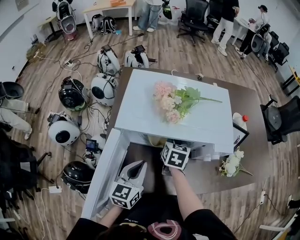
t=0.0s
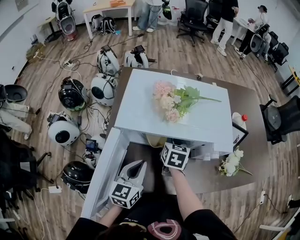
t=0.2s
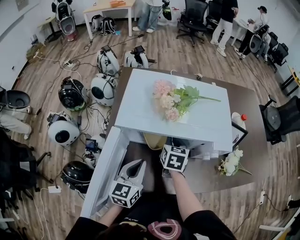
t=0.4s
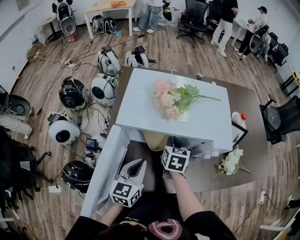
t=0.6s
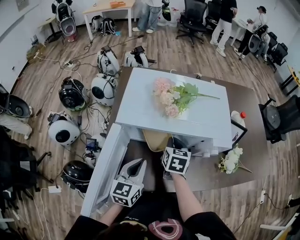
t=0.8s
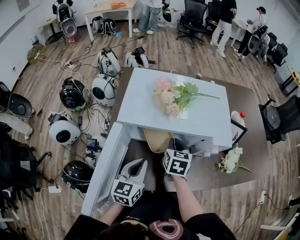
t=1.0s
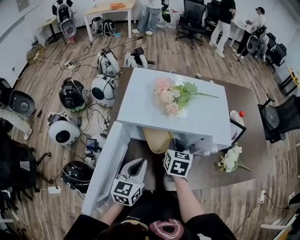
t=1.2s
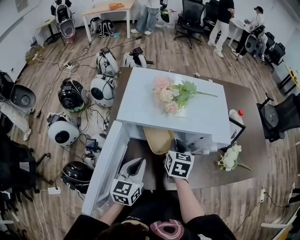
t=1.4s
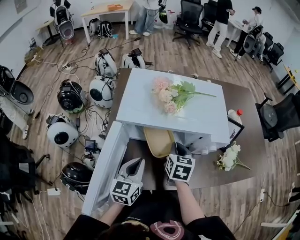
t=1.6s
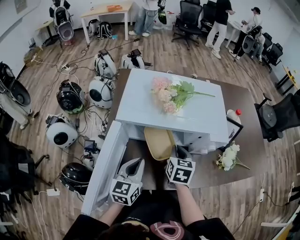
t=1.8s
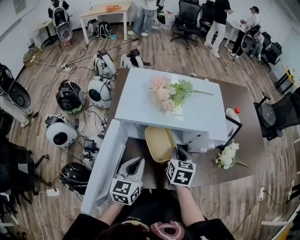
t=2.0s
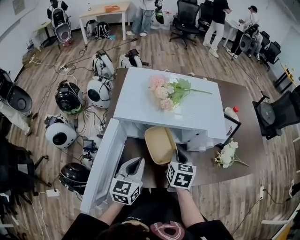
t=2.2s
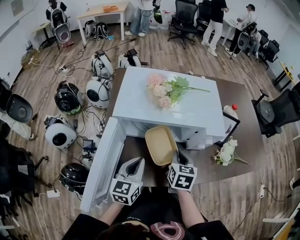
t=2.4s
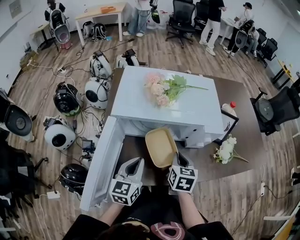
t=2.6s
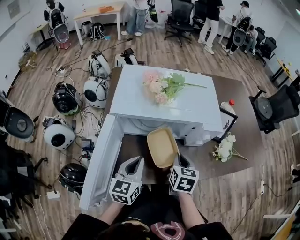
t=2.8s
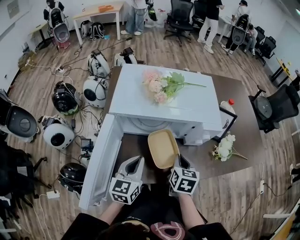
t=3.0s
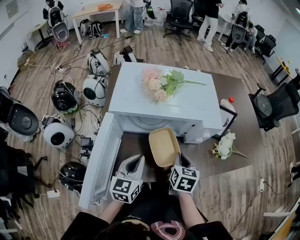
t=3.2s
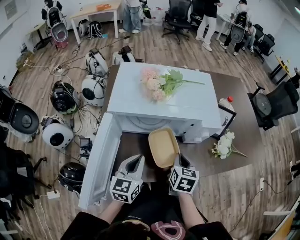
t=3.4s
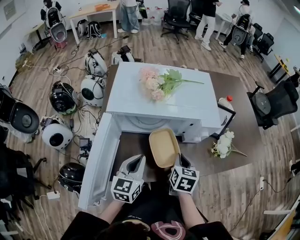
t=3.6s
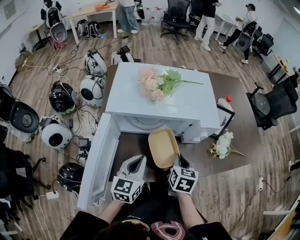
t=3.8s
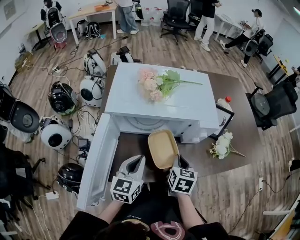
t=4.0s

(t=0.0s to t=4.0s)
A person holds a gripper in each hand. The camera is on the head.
t=0.0s - t=1.4s: The right gripper heads backward, covering about 5 cm.
t=1.4s - t=2.6s: The right gripper travels backward and to the right by approximately 10 cm.
t=2.6s - t=4.0s: The grippers make only small movements.

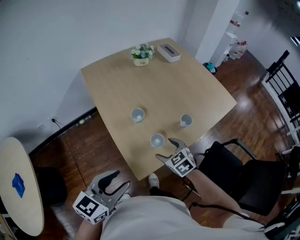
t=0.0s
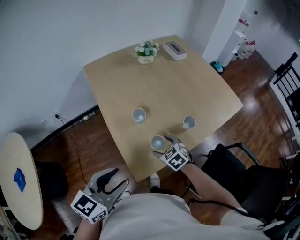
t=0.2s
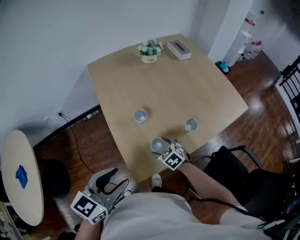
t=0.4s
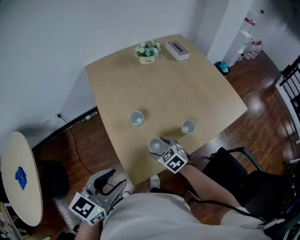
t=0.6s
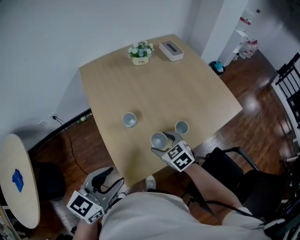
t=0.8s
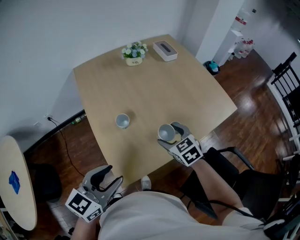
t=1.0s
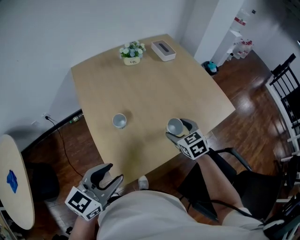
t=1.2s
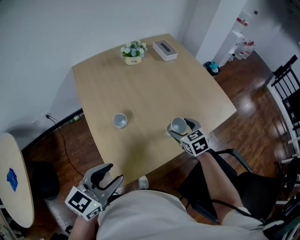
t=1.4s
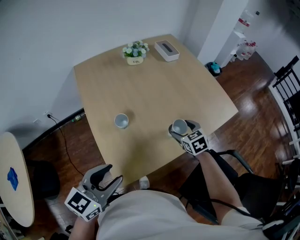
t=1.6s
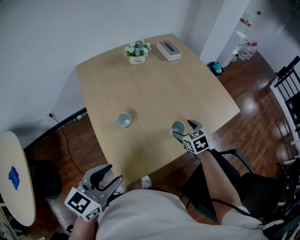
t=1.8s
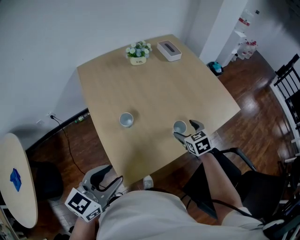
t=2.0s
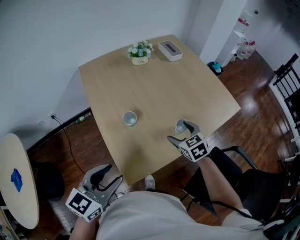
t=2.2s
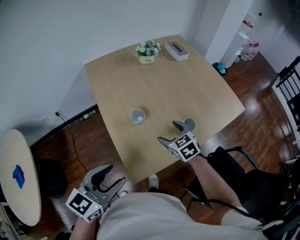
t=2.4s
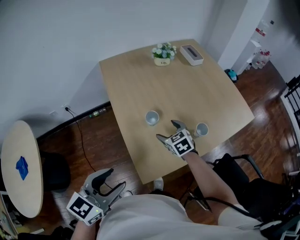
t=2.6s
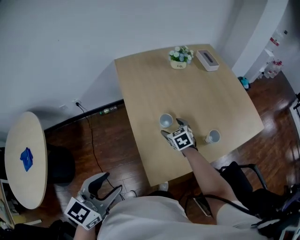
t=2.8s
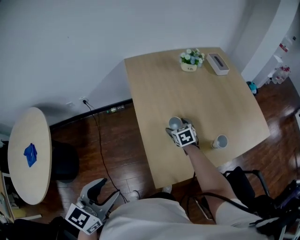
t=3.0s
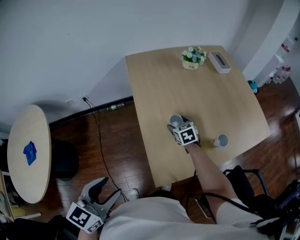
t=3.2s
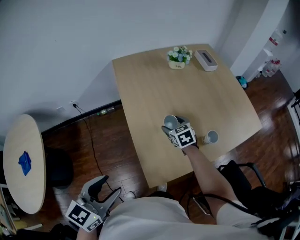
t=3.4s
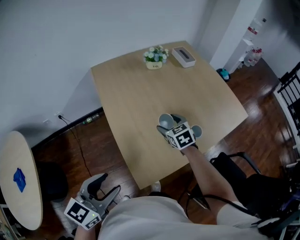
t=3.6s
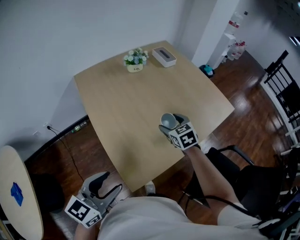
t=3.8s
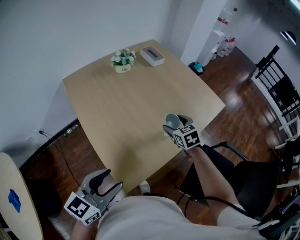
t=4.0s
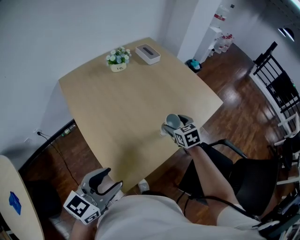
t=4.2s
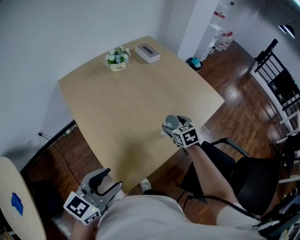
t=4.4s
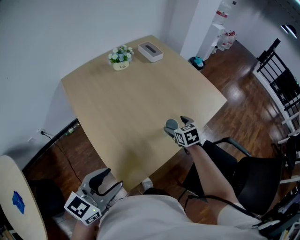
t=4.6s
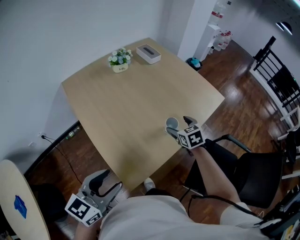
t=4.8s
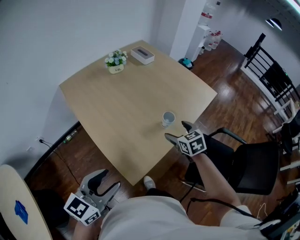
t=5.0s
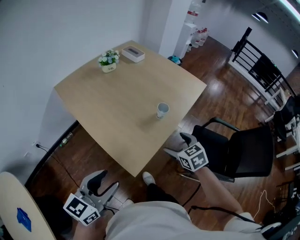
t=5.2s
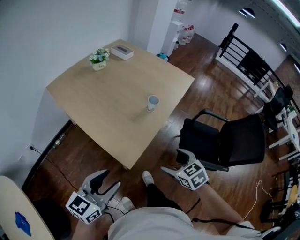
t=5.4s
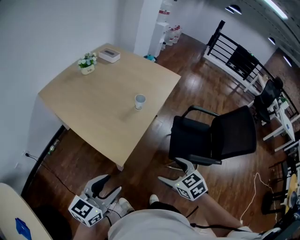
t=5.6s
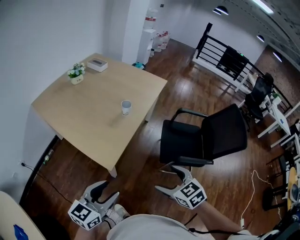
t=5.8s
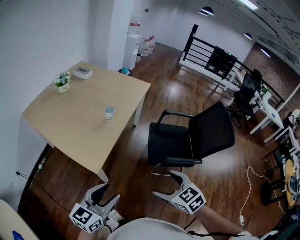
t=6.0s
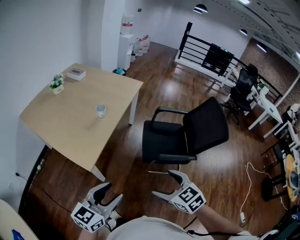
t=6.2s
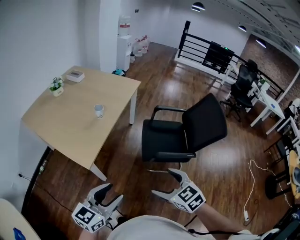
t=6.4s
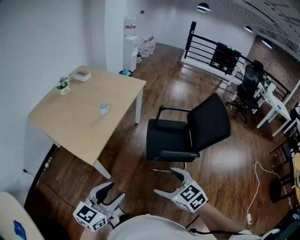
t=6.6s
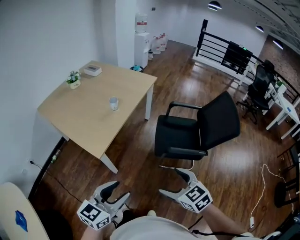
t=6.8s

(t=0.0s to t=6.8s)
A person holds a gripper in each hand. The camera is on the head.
t=0.0s - t=1.4s: The right gripper shifts roughly 25 cm to the right and forward, while the left gripper is displaced to the right and forward by approximately 15 cm.
t=1.4s - t=2.8s: The right gripper moves to the left, roughly 25 cm, while the left gripper travels to the left and backward by approximately 20 cm.
t=2.8s - t=4.0s: The left gripper moves about 15 cm, and rotates about 20 degrees; the right gripper shifts by some 25 cm, and rotates some 20 degrees.
t=4.0s - t=5.4s: The right gripper travels backward by approximately 40 cm. The left gripper goes roughly 15 cm backward.
t=5.4s - t=6.8s: Both grippers travel together to the right and backward, some 30 cm.

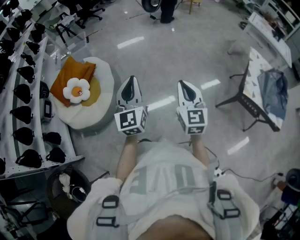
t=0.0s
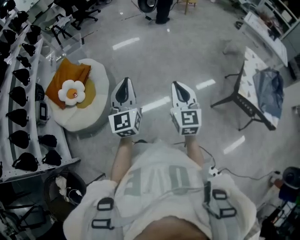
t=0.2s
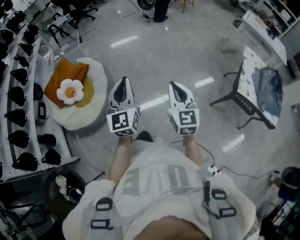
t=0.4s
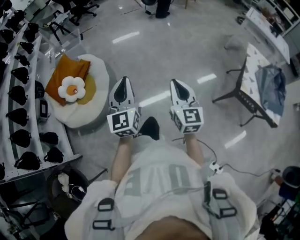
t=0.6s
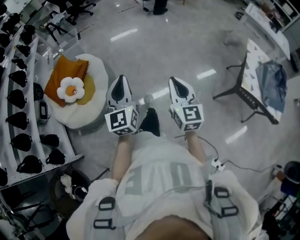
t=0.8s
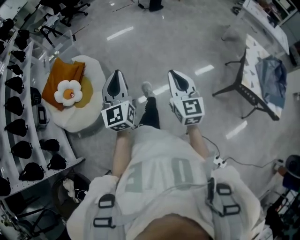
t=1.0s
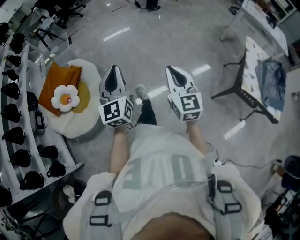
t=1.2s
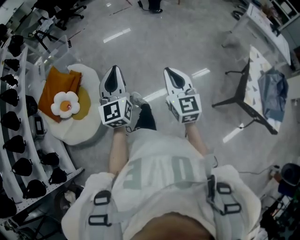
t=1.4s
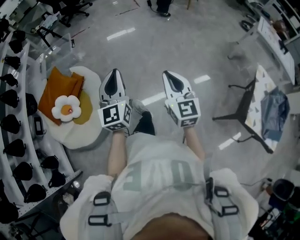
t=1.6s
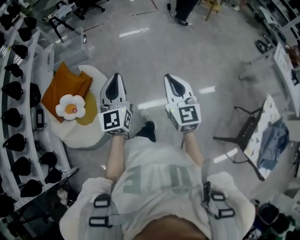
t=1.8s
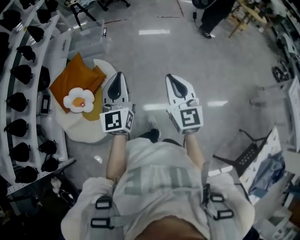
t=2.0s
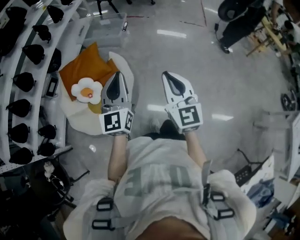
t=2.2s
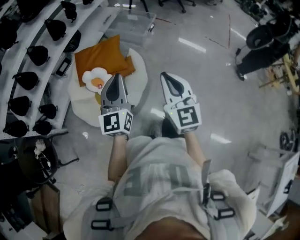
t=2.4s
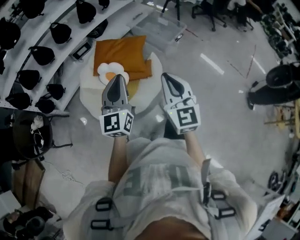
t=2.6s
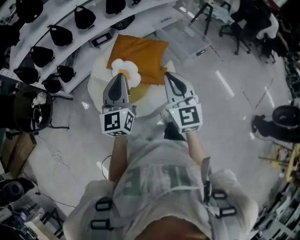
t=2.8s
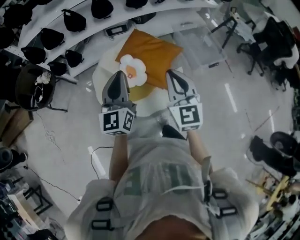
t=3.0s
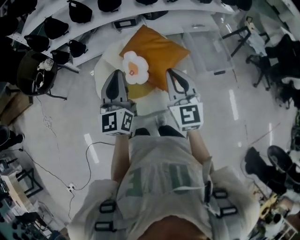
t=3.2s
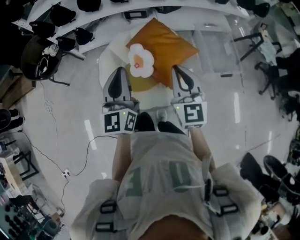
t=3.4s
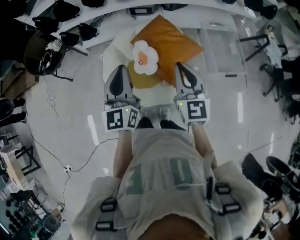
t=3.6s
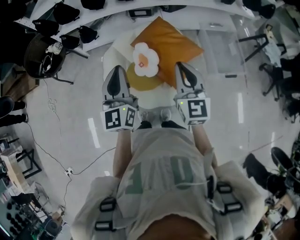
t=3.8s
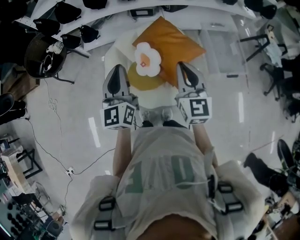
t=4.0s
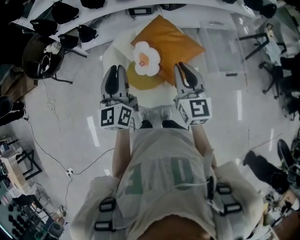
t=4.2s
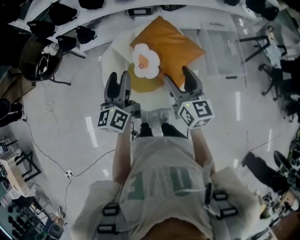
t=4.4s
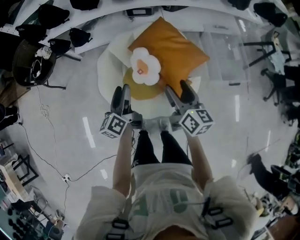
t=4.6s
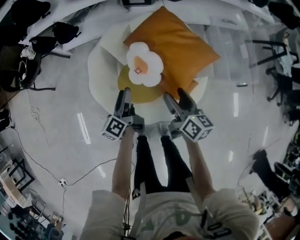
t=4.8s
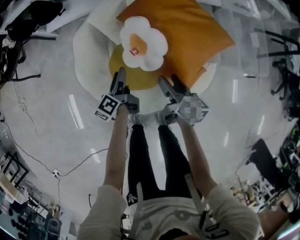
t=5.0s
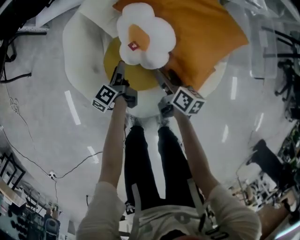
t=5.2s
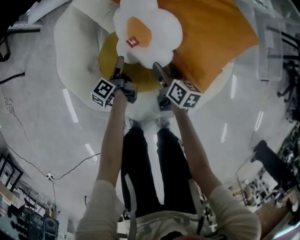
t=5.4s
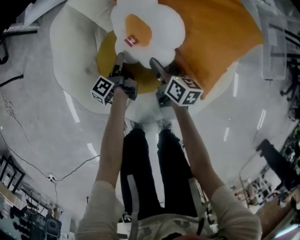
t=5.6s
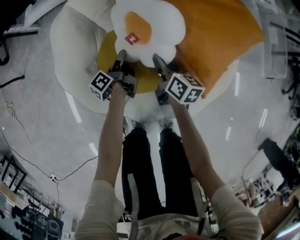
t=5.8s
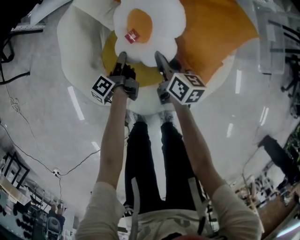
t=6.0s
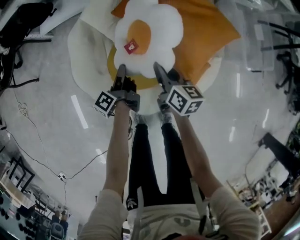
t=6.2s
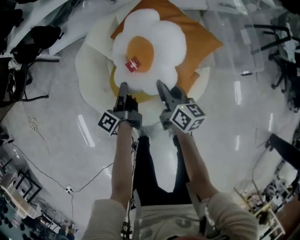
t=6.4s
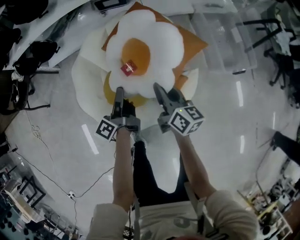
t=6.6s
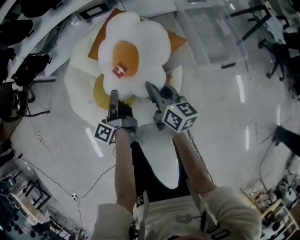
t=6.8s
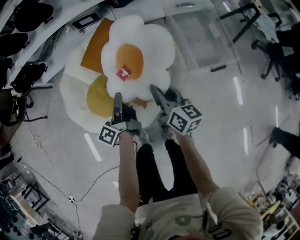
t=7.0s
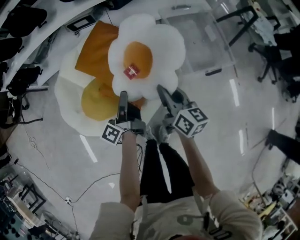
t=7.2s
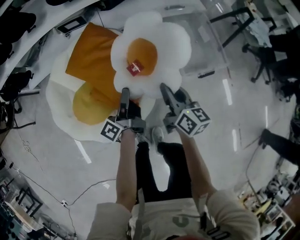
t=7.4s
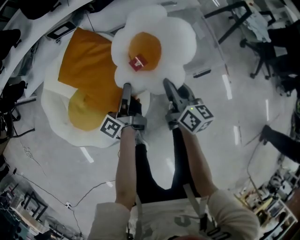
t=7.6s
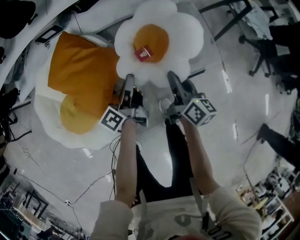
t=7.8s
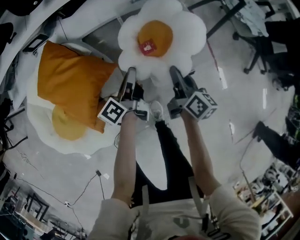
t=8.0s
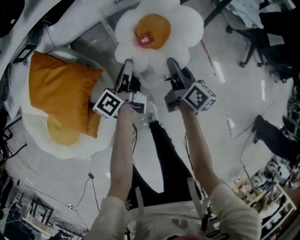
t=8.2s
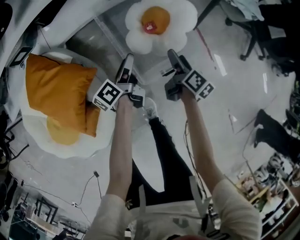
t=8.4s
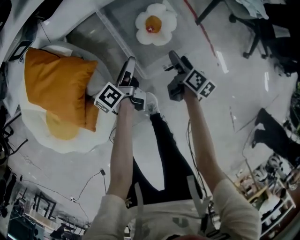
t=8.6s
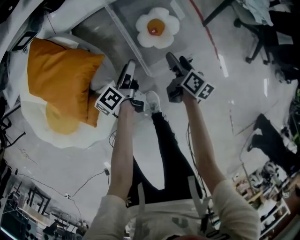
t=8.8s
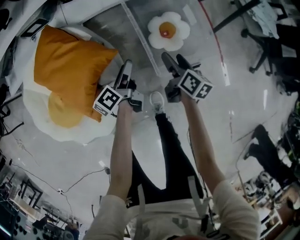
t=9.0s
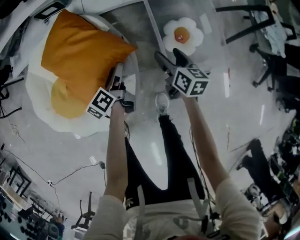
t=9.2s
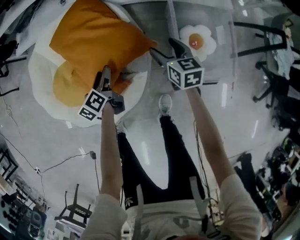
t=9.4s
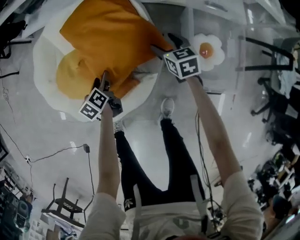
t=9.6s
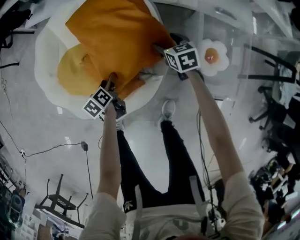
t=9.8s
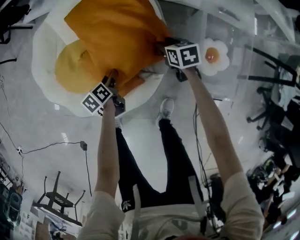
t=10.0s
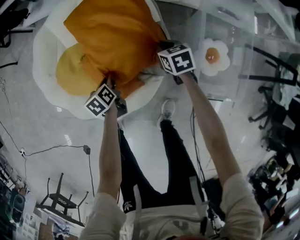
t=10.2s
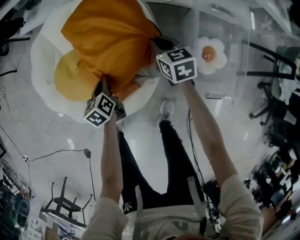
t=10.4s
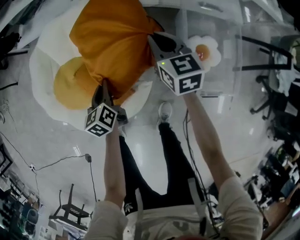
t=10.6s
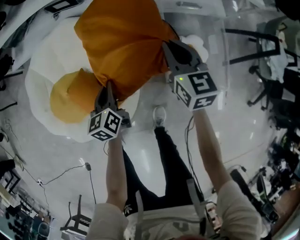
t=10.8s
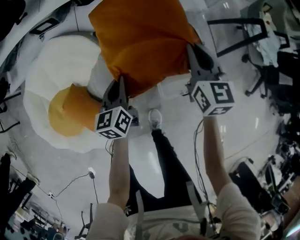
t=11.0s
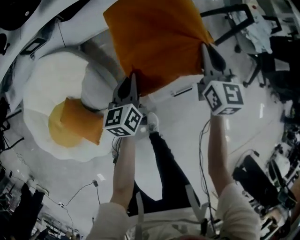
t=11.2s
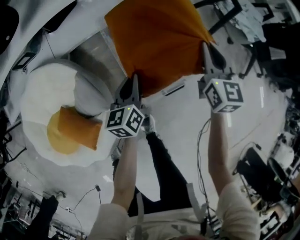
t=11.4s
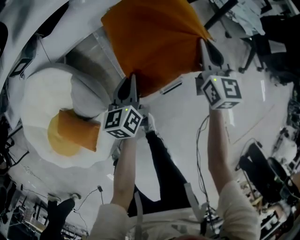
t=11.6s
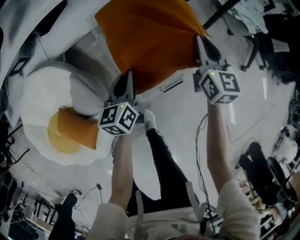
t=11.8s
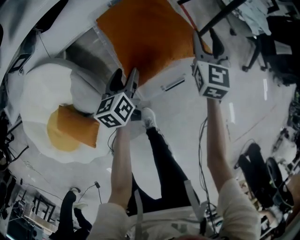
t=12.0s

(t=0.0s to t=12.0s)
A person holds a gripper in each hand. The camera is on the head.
t=0.0s - t=1.6s: The two grippers go roughly 35 cm forward.
t=1.6s - t=3.0s: The two grippers travel together, some 60 cm. The left gripper changes its angle by roughly 80 degrees. Meanwhile the right gripper rotates roughly 90 degrees.
t=3.0s - t=4.4s: Both grippers travel together forward and downward, some 15 cm. The right gripper swivels approximately 30 degrees, and opens up. The left gripper changes its angle by approximately 30 degrees, and opens.
t=4.4s - t=6.0s: Both grippers move downward, approximately 60 cm. The left gripper twists about 50 degrees counterclockwise, seen from behind, and closes its fingers, while the right gripper rotates approximately 30 degrees, and closes up.
t=6.0s - t=7.6s: Both grippers are carried to the right, about 40 cm. The grippers both shift upward by about 30 cm. The left gripper swivels some 20 degrees.
t=7.6s - t=9.0s: The grippers both shift to the right, downward and forward by roughly 25 cm. The left gripper opens up, while the right gripper opens its fingers.
t=9.0s - t=10.4s: The right gripper goes downward and returns, about 10 cm each way, rotates around the line of its fingers by some 60 degrees, counterclockwise from behind, and closes. The left gripper shifts by about 35 cm, changes its angle by roughly 50 degrees, and closes its fingers.
t=10.4s - t=12.0s: Both grippers are carried roughly 50 cm. The left gripper turns by some 50 degrees, and opens its fingers, while the right gripper swivels roughly 60 degrees, and opens.
